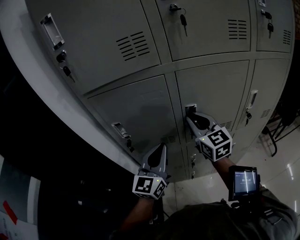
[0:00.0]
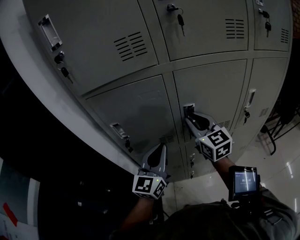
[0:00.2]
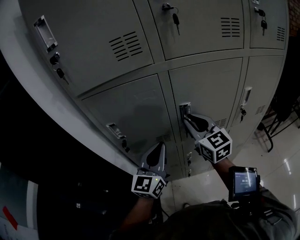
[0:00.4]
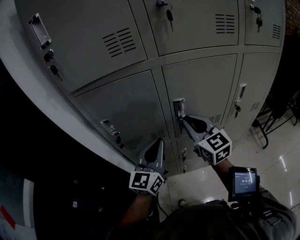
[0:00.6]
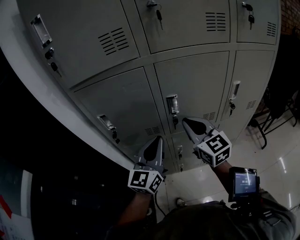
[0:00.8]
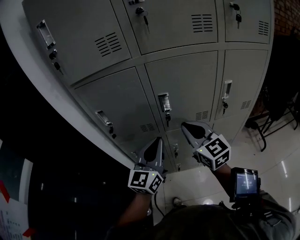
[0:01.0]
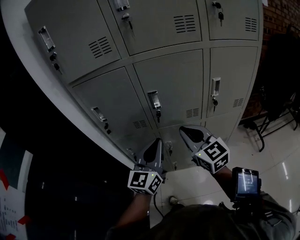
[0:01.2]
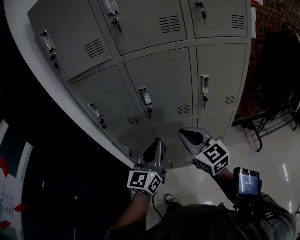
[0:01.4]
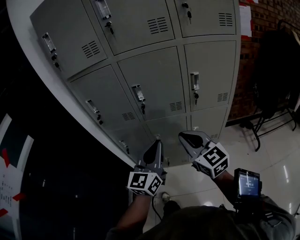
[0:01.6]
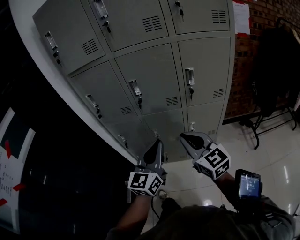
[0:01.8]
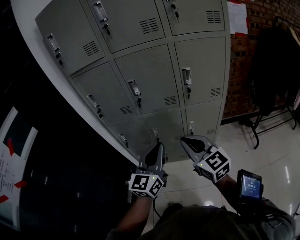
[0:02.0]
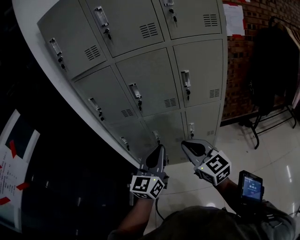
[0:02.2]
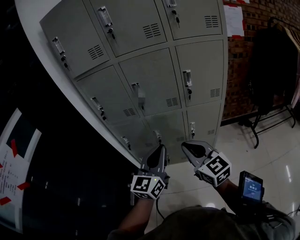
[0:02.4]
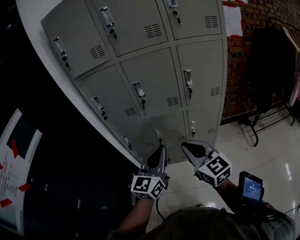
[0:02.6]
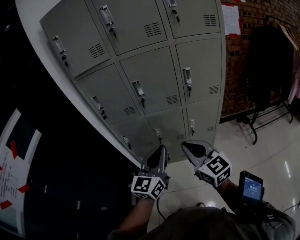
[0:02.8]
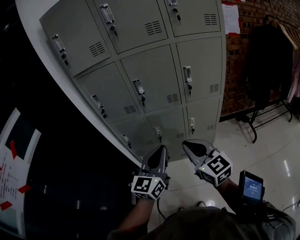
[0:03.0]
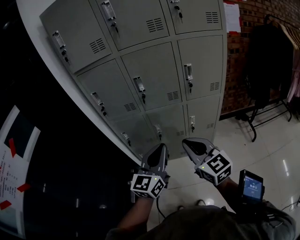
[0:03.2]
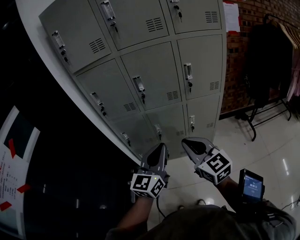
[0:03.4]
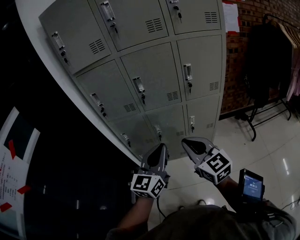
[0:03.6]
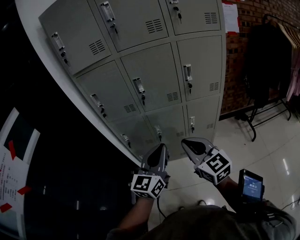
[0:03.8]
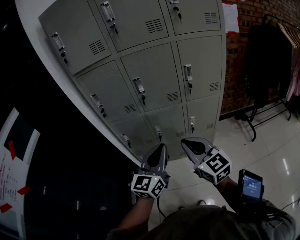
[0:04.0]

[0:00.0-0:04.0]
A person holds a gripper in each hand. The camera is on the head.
0:00.0 to 0:01.4: The right gripper travels backward and to the right by roughly 25 cm; the left gripper is displaced to the right and backward by approximately 20 cm.
0:01.4 to 0:02.6: The two grippers go roughly 15 cm backward.
0:02.6 to 0:04.0: The grippers move only a little.

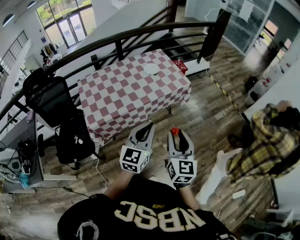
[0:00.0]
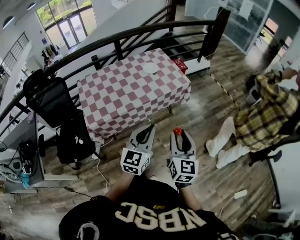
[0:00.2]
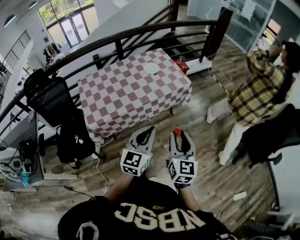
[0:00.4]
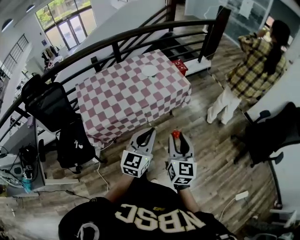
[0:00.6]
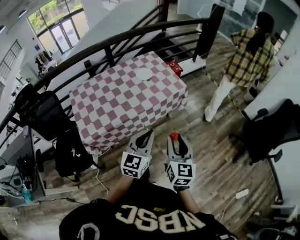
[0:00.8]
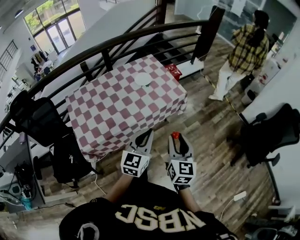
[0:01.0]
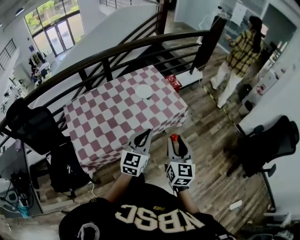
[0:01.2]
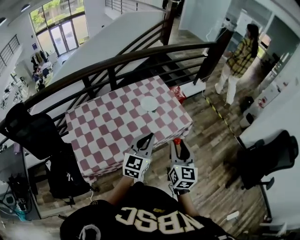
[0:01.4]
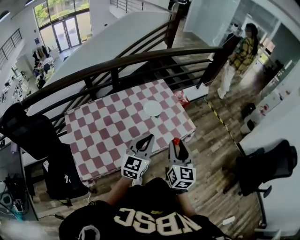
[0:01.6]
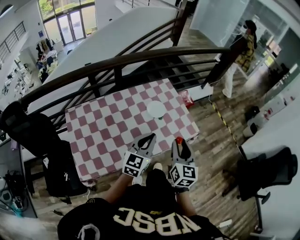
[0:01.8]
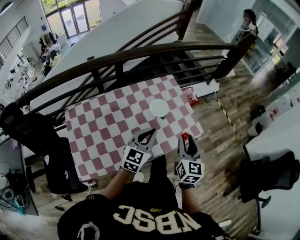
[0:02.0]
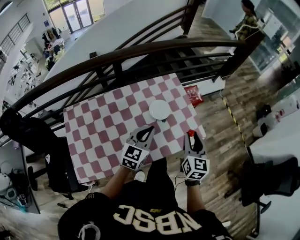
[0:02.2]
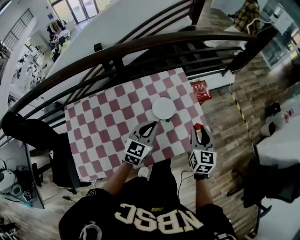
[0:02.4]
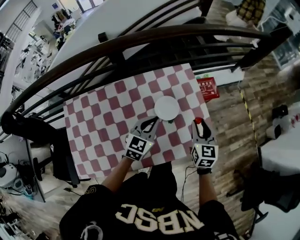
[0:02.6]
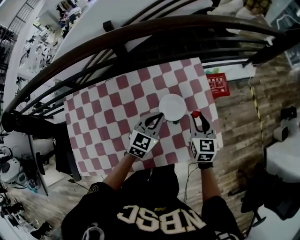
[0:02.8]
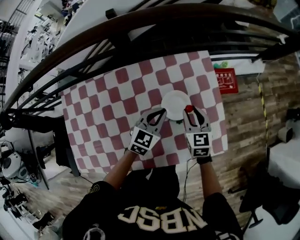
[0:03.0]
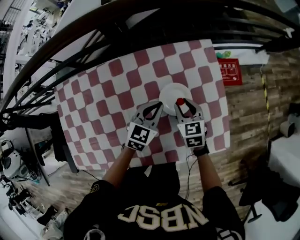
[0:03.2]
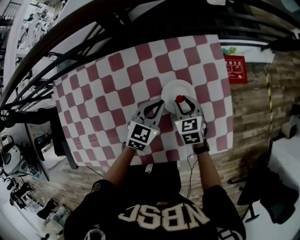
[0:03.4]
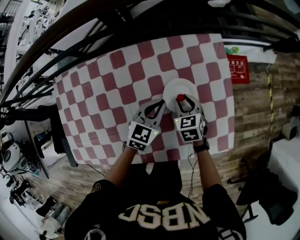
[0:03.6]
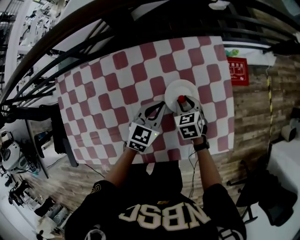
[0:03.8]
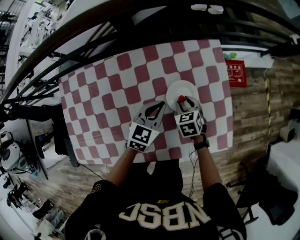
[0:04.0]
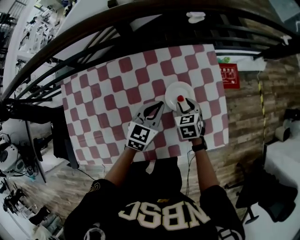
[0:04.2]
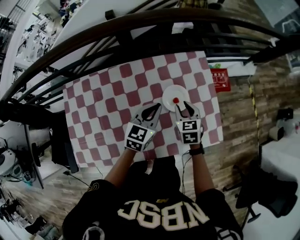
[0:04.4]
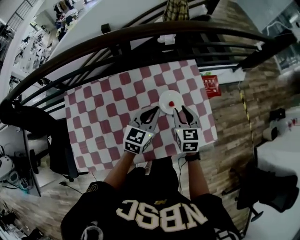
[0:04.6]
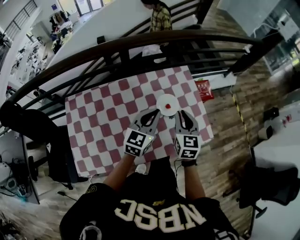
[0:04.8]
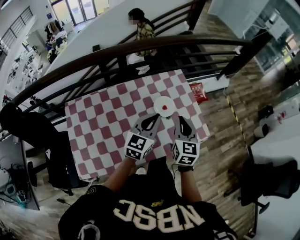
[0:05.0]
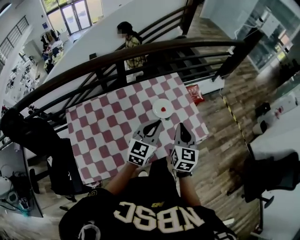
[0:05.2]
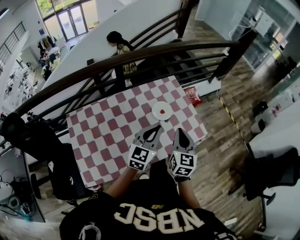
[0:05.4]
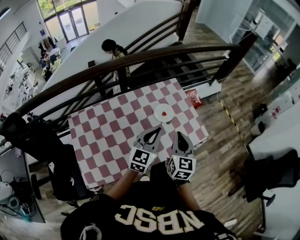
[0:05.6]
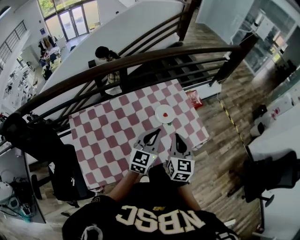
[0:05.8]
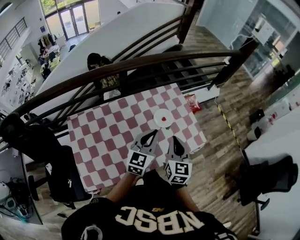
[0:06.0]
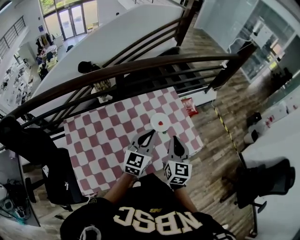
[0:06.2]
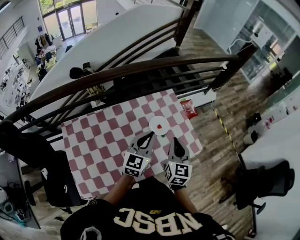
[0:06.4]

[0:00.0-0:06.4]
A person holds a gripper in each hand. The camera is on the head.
0:00.0 to 0:01.6: The two grippers go approximately 35 cm forward.
0:01.6 to 0:03.2: The grippers both shift forward and downward by some 50 cm. The right gripper points its fingers approximately 30 degrees further downward. Meanwhile the left gripper turns by approximately 30 degrees.
0:03.2 to 0:04.8: Both grippers move upward and backward, about 25 cm. The right gripper rotates some 30 degrees.
0:04.8 to 0:06.4: The left gripper goes some 5 cm upward; the right gripper shifts some 10 cm upward and backward.

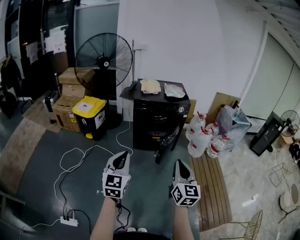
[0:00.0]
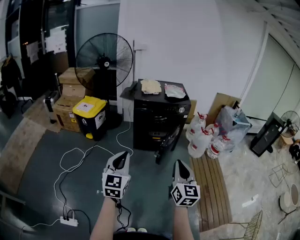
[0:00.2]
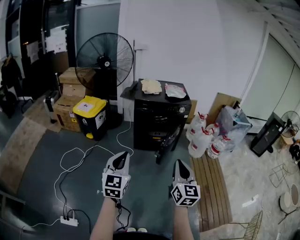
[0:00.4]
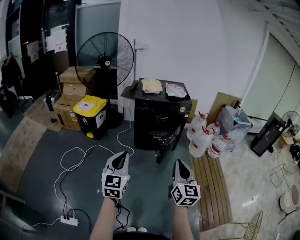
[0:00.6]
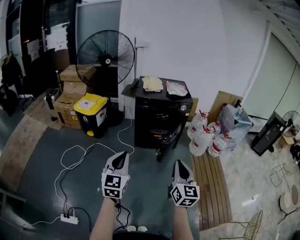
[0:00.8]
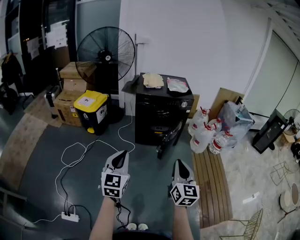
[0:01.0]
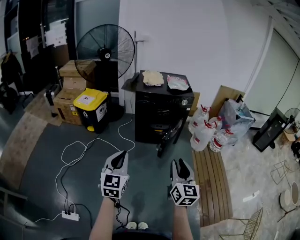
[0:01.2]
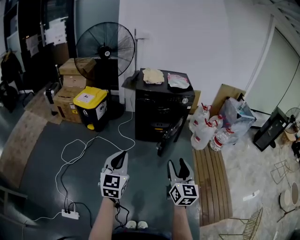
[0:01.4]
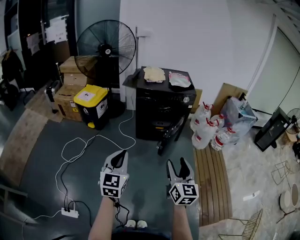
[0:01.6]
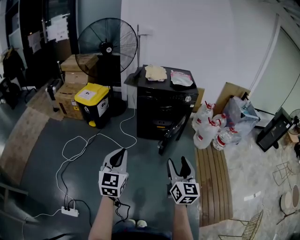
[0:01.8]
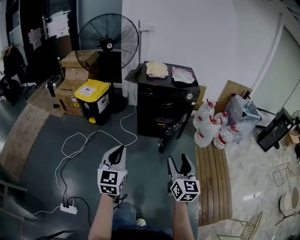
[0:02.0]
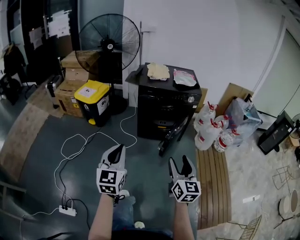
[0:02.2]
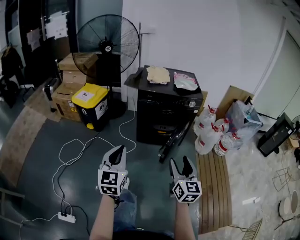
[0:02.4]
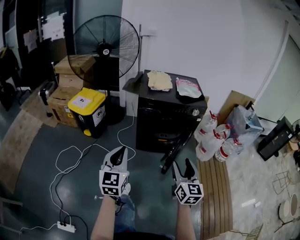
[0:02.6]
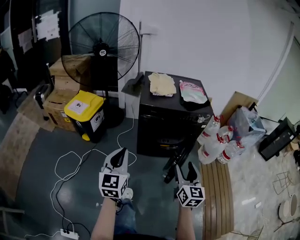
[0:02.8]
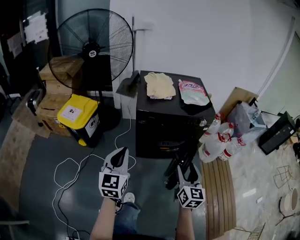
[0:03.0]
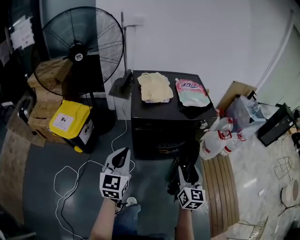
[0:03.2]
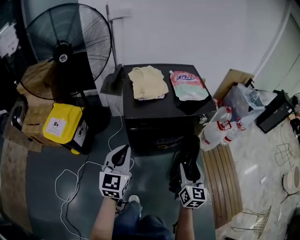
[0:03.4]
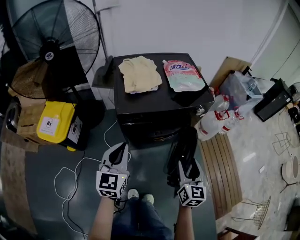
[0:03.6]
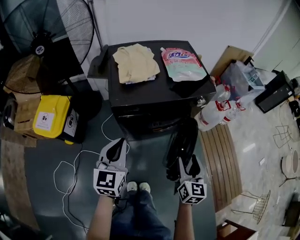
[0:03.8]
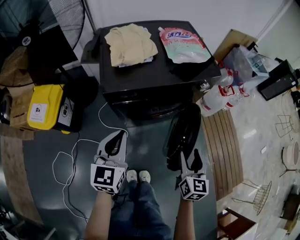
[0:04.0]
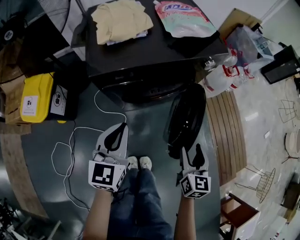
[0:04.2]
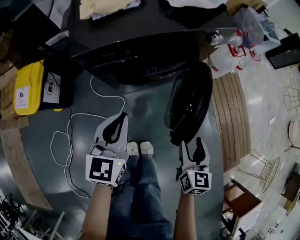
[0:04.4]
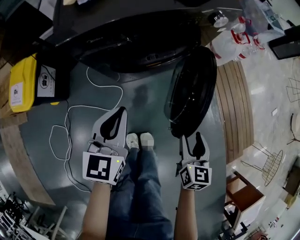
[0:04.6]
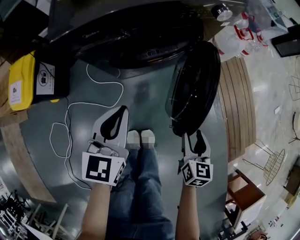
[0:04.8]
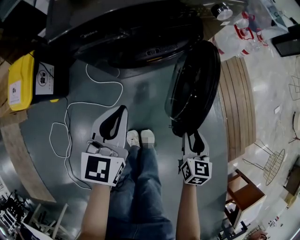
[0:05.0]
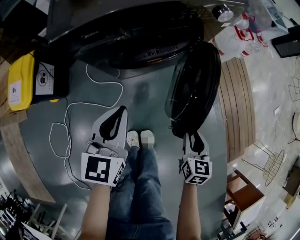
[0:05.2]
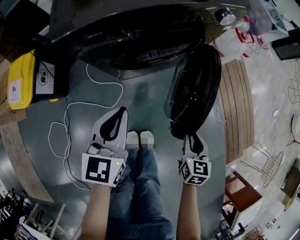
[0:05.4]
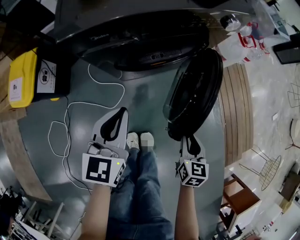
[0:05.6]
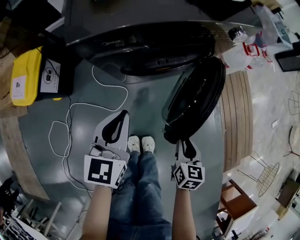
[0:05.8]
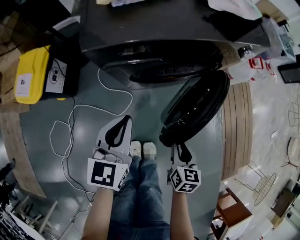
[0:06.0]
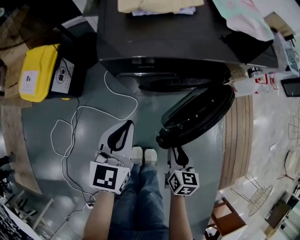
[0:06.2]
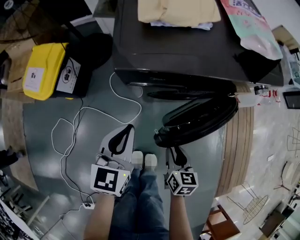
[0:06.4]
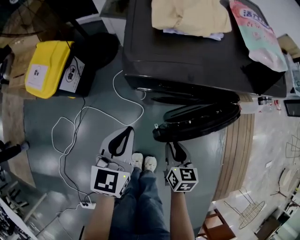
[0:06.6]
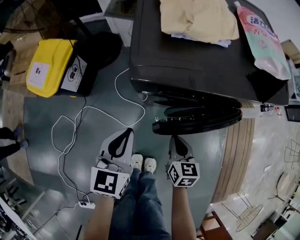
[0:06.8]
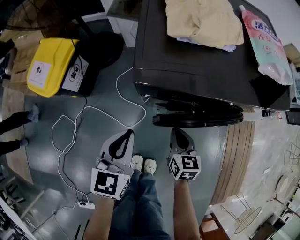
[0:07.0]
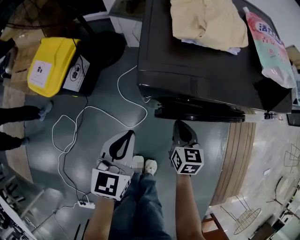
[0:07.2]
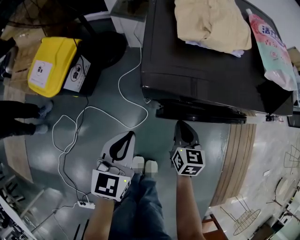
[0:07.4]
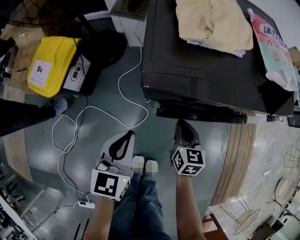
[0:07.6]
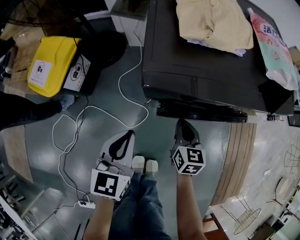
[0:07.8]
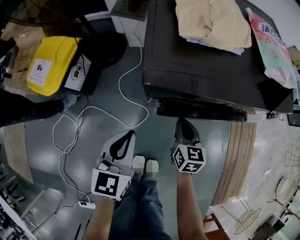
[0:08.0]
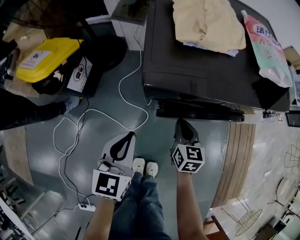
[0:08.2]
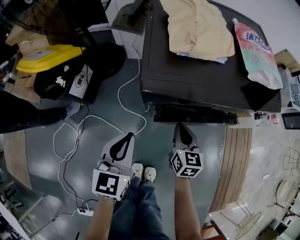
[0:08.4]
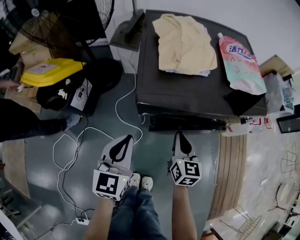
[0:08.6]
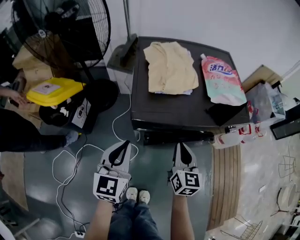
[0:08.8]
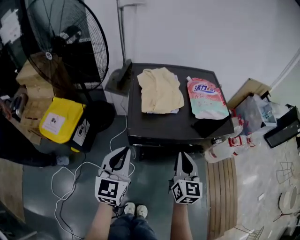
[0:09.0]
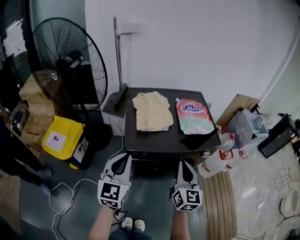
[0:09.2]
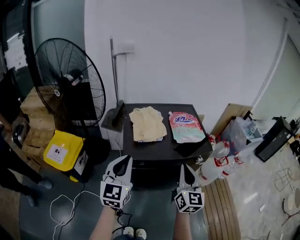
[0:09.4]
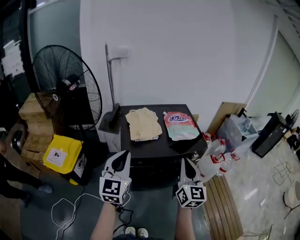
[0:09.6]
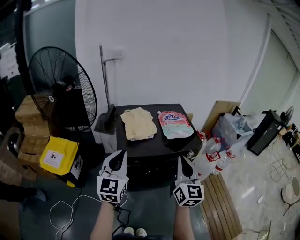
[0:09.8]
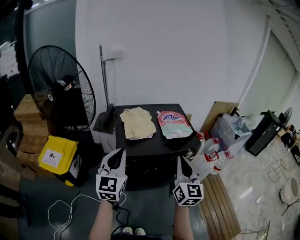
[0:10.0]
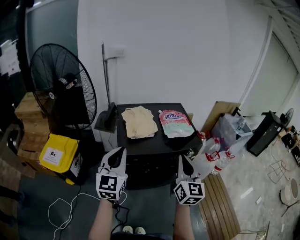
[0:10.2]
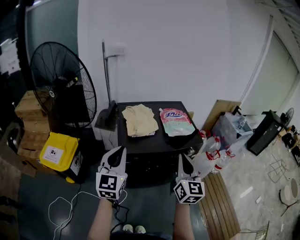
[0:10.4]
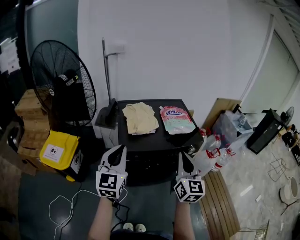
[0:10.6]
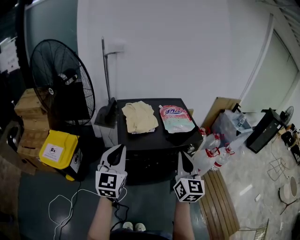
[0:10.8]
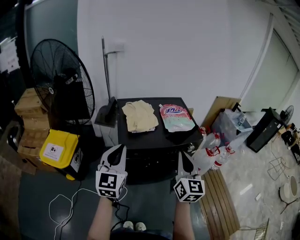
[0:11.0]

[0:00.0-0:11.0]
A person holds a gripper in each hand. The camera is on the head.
0:00.0 to 0:01.6: The right gripper ends up some 5 cm from where it was, and opens.
0:01.6 to 0:03.2: The two grippers travel together, forward, roughly 50 cm.
0:03.2 to 0:04.8: The left gripper travels downward and to the right by roughly 25 cm, and turns by roughly 20 degrees, while the right gripper goes about 30 cm downward, and changes its angle by roughly 30 degrees.
0:04.8 to 0:06.2: The right gripper shifts roughly 15 cm to the left. The left gripper moves to the left, approximately 10 cm.
0:06.2 to 0:07.8: The right gripper travels forward and to the left by roughly 25 cm, and closes its fingers. Meanwhile the left gripper heads to the left, covering roughly 10 cm.
0:07.8 to 0:09.4: The two grippers go some 40 cm upward. The left gripper turns by approximately 30 degrees. The right gripper tips its fingers upward by some 30 degrees.
0:09.4 to 0:11.0: The right gripper moves roughly 5 cm.

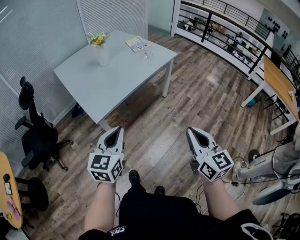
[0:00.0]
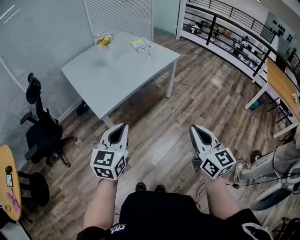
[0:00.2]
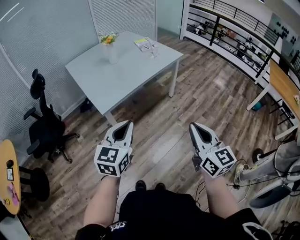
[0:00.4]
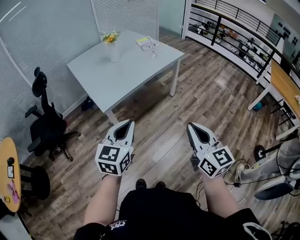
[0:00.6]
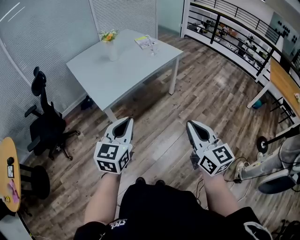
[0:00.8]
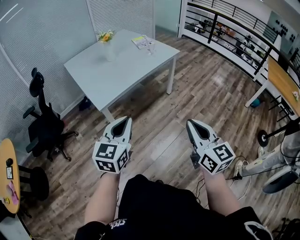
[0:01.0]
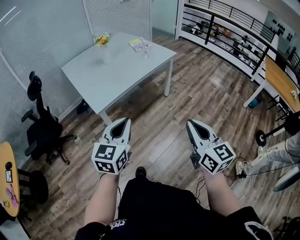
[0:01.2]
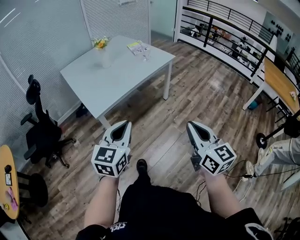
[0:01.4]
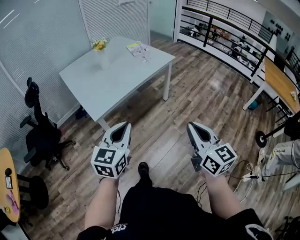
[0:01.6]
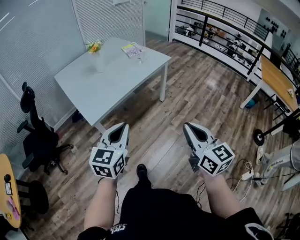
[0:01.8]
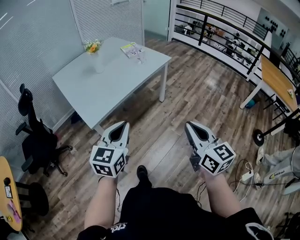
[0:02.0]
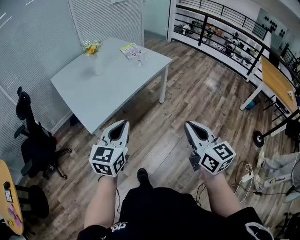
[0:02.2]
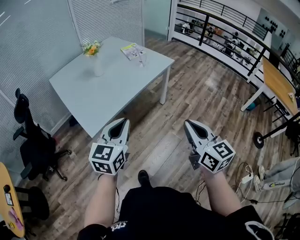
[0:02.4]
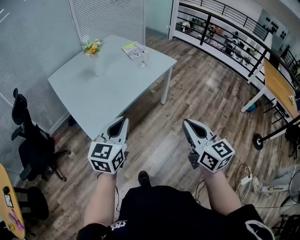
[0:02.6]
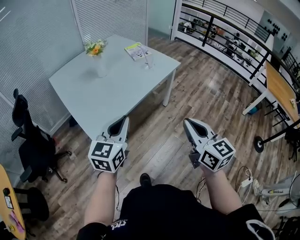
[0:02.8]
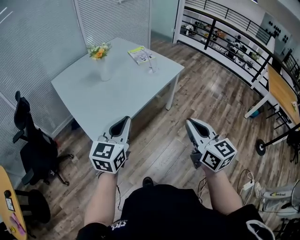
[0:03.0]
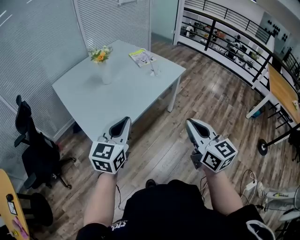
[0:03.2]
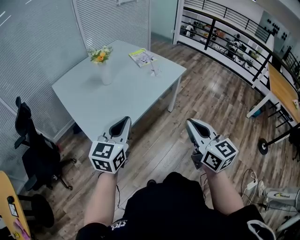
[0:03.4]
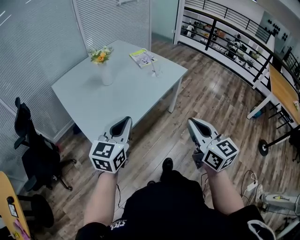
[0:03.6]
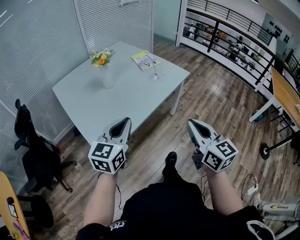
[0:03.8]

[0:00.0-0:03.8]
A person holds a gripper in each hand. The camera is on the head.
0:00.0 to 0:01.2: The left gripper heads to the right and backward, covering roughly 10 cm, while the right gripper is displaced backward by about 5 cm.
0:01.2 to 0:02.6: The grippers both shift forward by approximately 20 cm.
0:02.6 to 0:03.8: The two grippers go about 15 cm forward and to the left.
